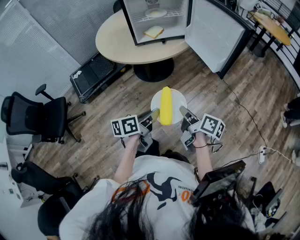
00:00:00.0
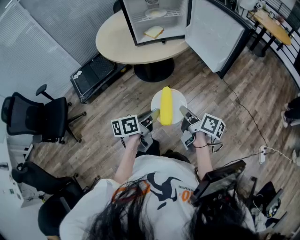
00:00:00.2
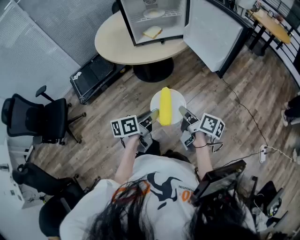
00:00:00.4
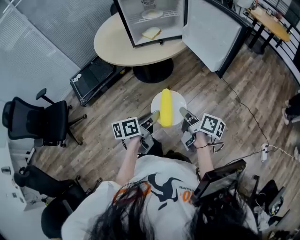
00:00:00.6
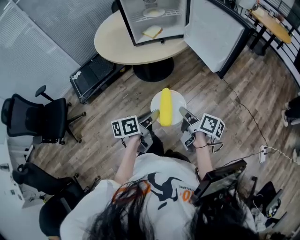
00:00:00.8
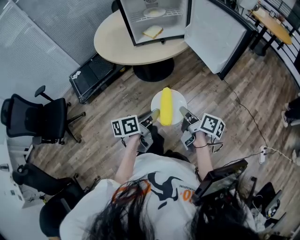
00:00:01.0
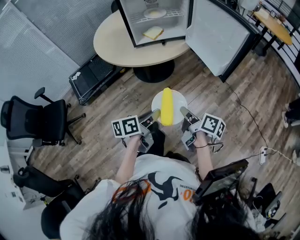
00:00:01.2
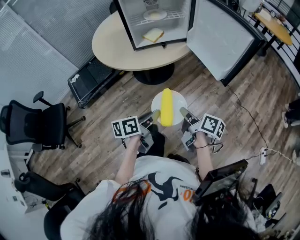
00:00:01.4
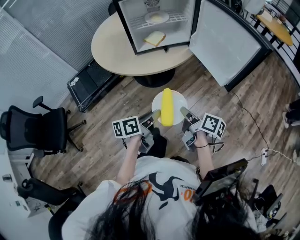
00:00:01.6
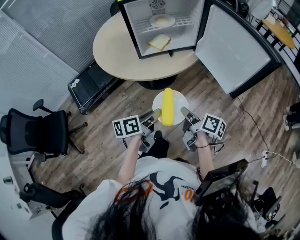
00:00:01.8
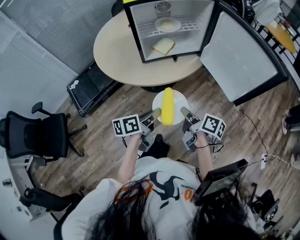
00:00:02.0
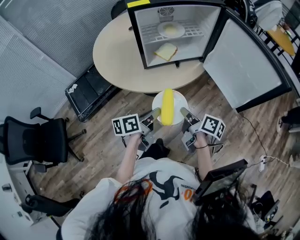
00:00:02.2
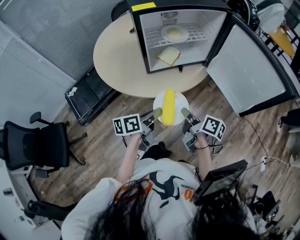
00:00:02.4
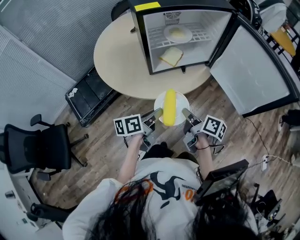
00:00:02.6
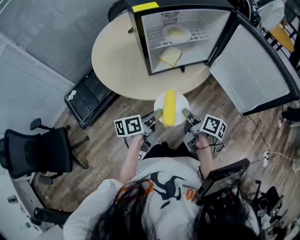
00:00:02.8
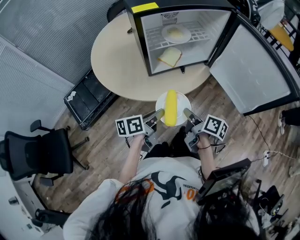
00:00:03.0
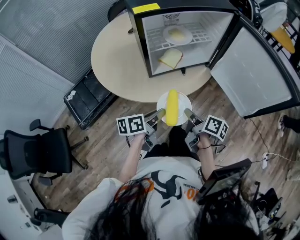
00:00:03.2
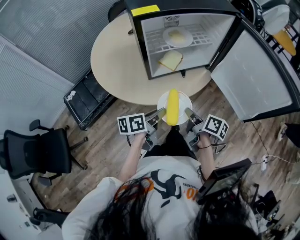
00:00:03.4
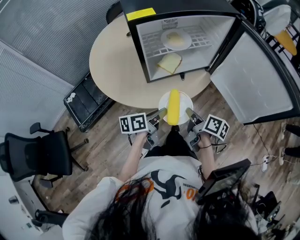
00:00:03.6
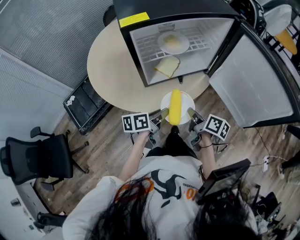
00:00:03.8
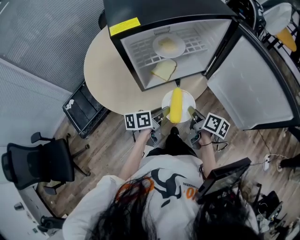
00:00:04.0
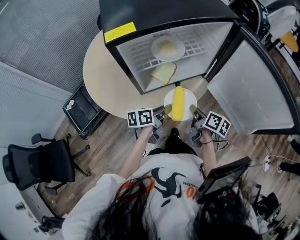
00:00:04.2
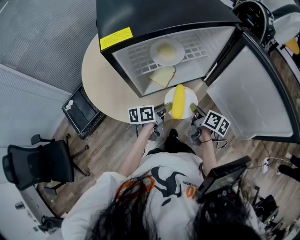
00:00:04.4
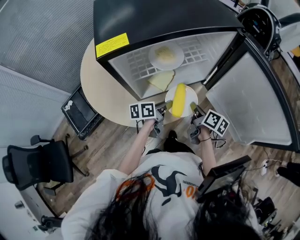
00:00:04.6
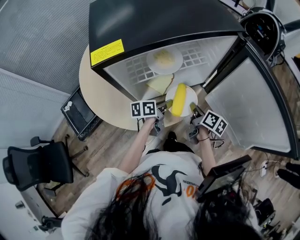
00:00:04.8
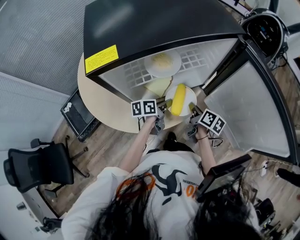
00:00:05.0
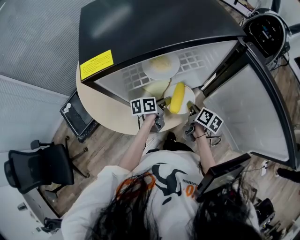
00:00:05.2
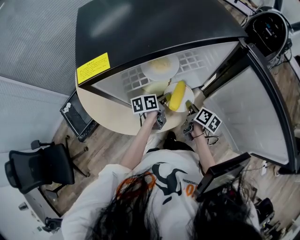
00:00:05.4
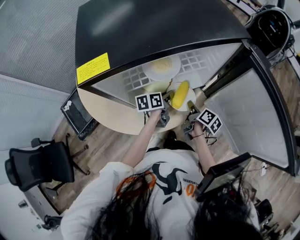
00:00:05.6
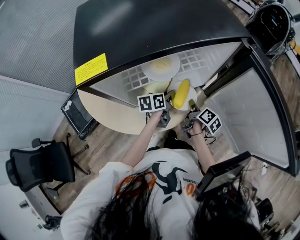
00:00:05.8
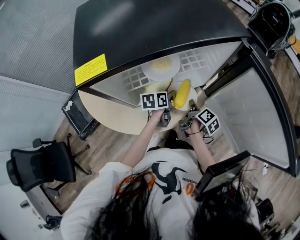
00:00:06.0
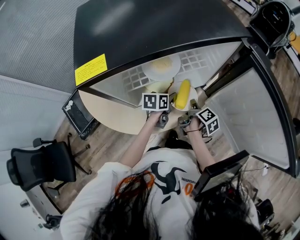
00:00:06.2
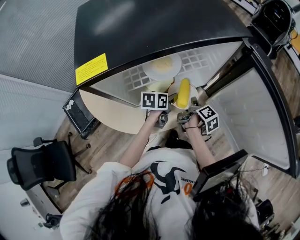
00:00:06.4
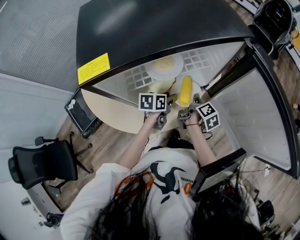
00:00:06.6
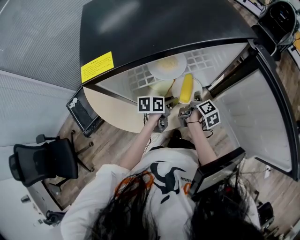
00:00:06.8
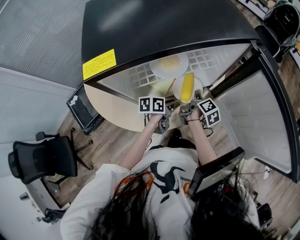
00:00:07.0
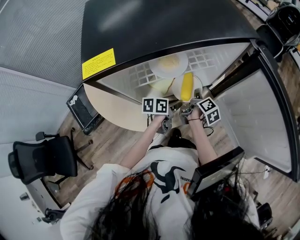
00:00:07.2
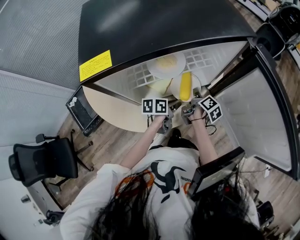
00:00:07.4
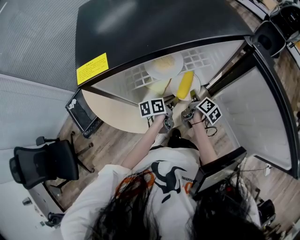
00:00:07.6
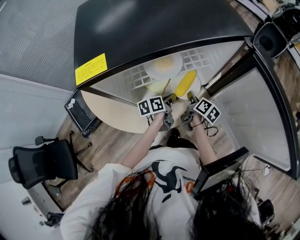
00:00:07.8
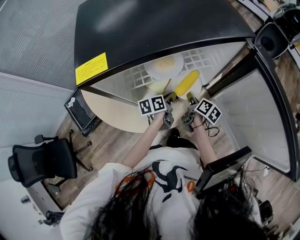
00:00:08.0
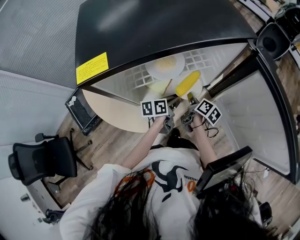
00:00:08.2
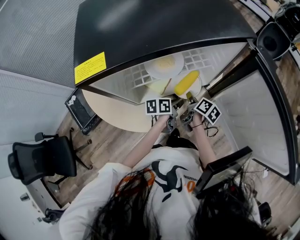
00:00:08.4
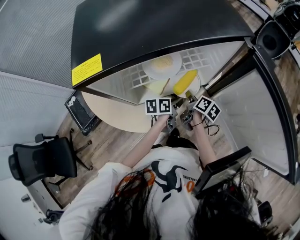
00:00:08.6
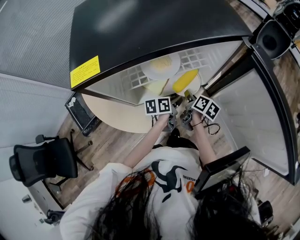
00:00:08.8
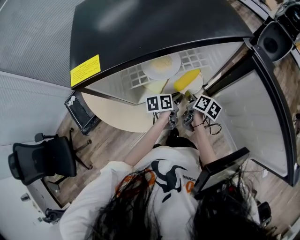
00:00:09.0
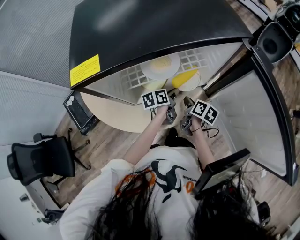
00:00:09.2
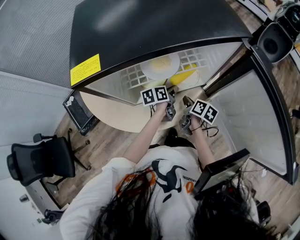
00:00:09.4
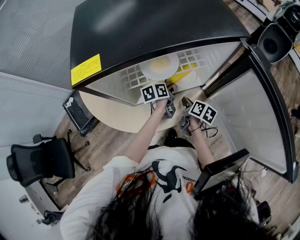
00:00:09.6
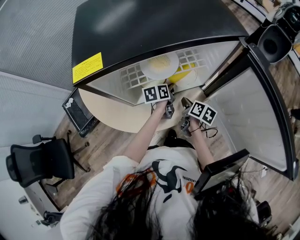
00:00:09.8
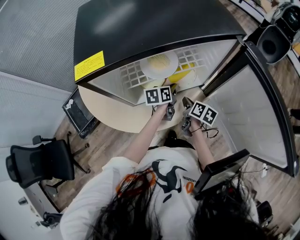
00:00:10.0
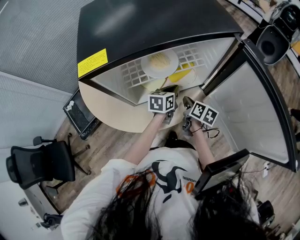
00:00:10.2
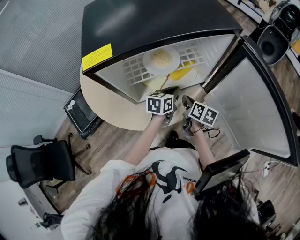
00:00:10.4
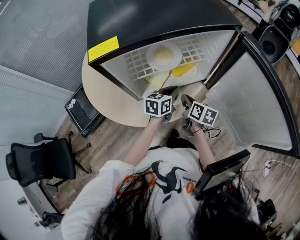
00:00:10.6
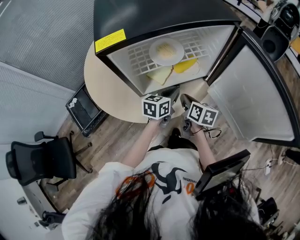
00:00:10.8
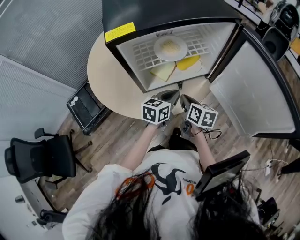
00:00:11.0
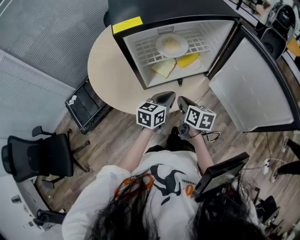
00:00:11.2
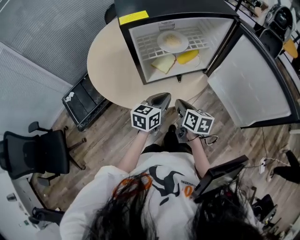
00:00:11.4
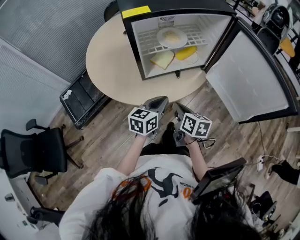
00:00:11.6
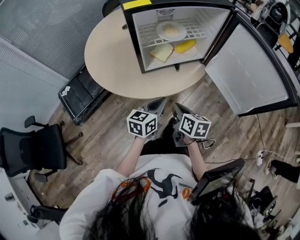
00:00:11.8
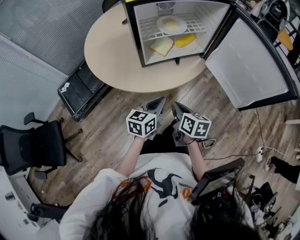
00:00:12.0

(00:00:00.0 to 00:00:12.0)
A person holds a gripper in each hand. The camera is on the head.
00:00:00.0 - 00:00:01.6: The two grippers go approximately 10 cm forward.
00:00:01.6 - 00:00:03.0: The two grippers go roughly 20 cm forward and to the left.
00:00:03.0 - 00:00:04.4: Both grippers move forward, roughly 20 cm.
00:00:04.4 - 00:00:06.0: The right gripper shifts some 10 cm forward and downward, and turns by roughly 30 degrees. Meanwhile the left gripper goes some 15 cm forward.
00:00:06.0 - 00:00:07.6: The left gripper opens, then closes once more.
00:00:07.6 - 00:00:09.0: The grippers stay close to where they were, moving slightly.
00:00:09.0 - 00:00:10.4: The left gripper heads upward, covering some 5 cm, and rotates some 30 degrees. Meanwhile the right gripper moves about 5 cm.
00:00:10.4 - 00:00:12.0: Both grippers travel together backward, approximately 30 cm.

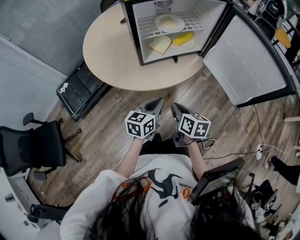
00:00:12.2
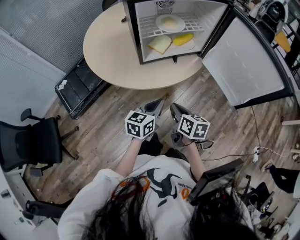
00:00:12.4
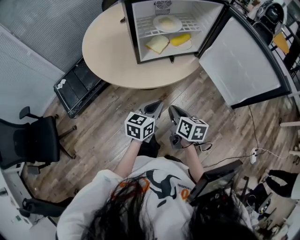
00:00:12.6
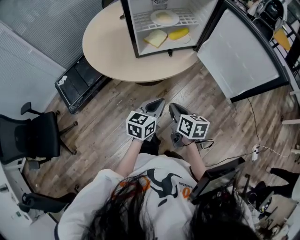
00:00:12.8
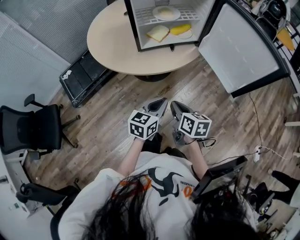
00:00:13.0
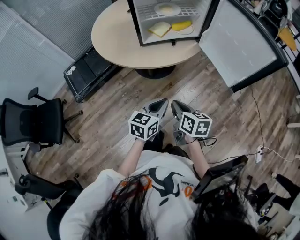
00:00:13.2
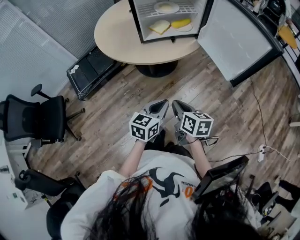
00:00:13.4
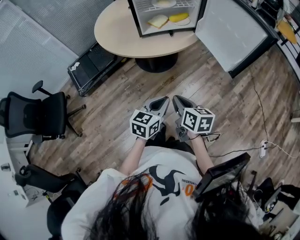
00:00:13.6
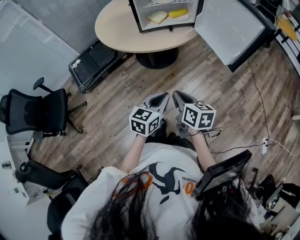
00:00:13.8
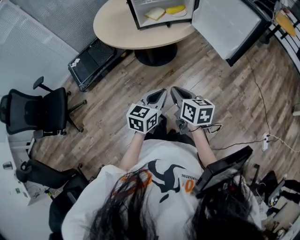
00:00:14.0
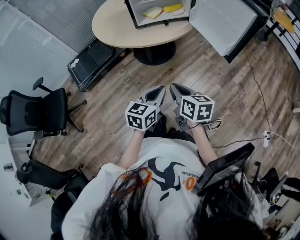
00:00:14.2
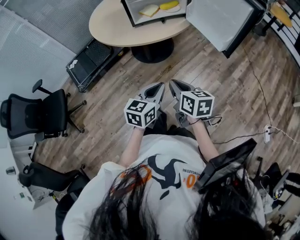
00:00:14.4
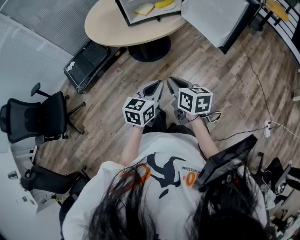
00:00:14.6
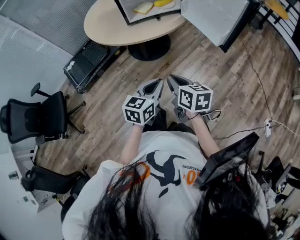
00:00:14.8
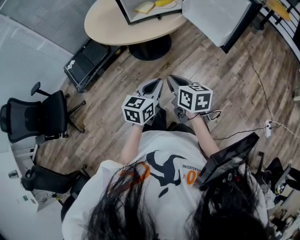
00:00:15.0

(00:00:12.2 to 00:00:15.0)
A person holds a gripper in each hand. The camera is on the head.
00:00:12.2 - 00:00:13.6: Both grippers move backward and to the right, roughly 20 cm.
00:00:13.6 - 00:00:15.0: The grippers make only small movements.

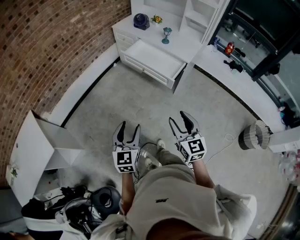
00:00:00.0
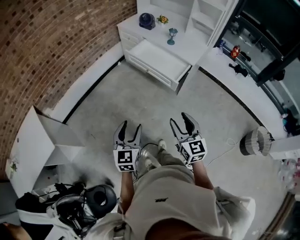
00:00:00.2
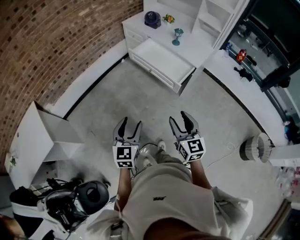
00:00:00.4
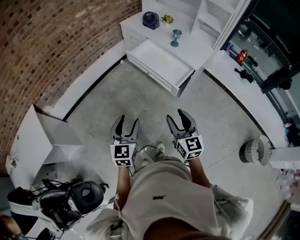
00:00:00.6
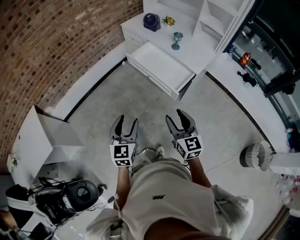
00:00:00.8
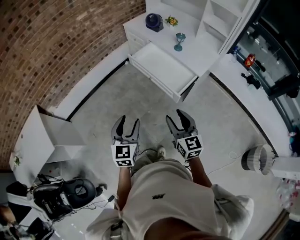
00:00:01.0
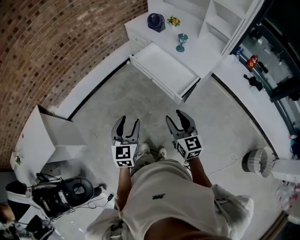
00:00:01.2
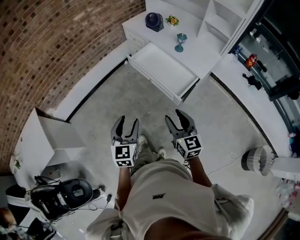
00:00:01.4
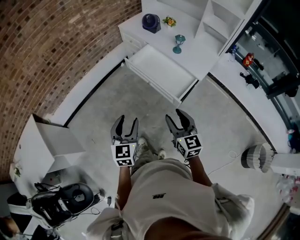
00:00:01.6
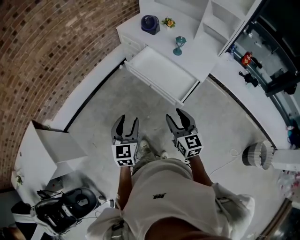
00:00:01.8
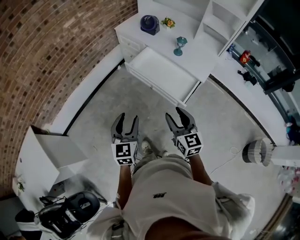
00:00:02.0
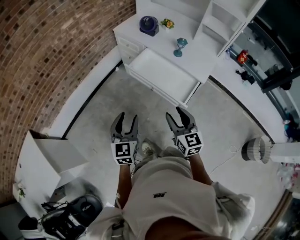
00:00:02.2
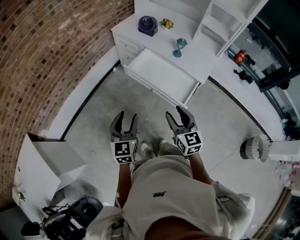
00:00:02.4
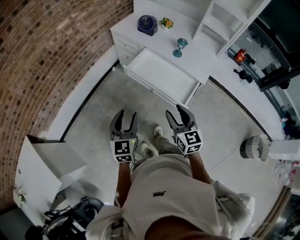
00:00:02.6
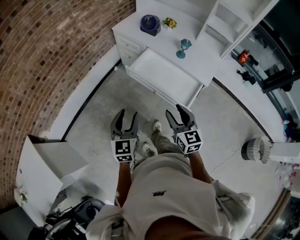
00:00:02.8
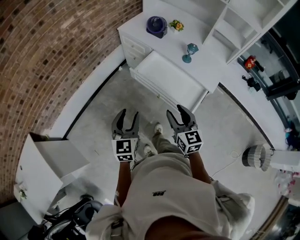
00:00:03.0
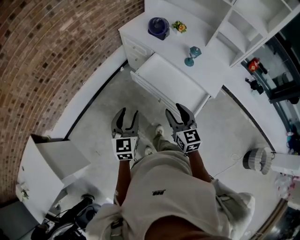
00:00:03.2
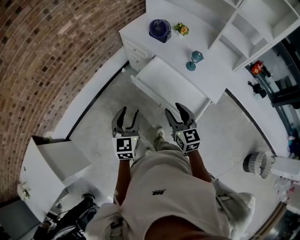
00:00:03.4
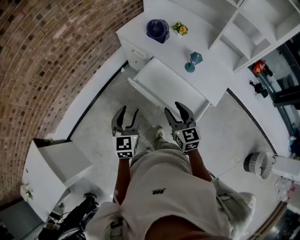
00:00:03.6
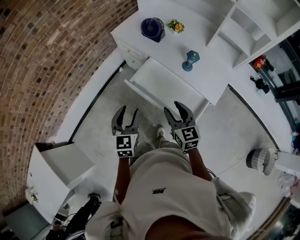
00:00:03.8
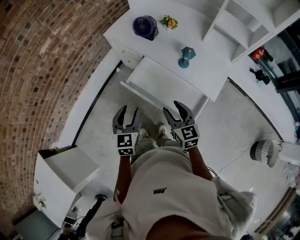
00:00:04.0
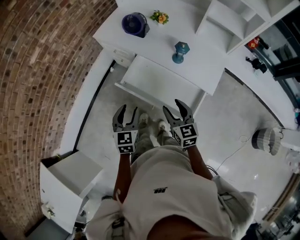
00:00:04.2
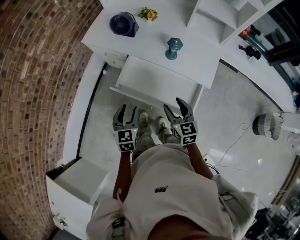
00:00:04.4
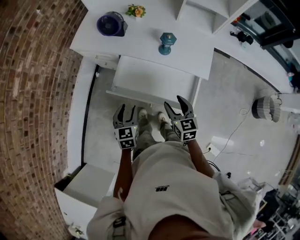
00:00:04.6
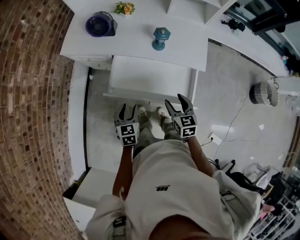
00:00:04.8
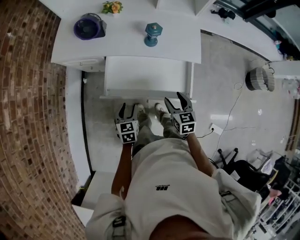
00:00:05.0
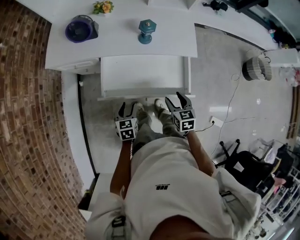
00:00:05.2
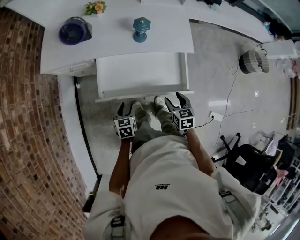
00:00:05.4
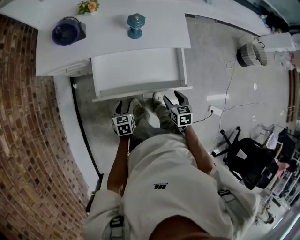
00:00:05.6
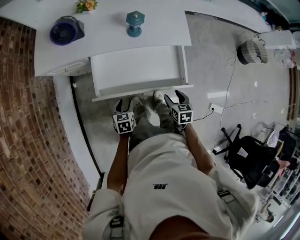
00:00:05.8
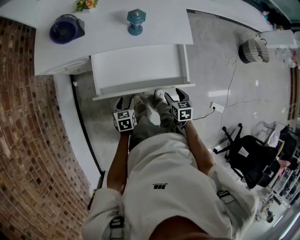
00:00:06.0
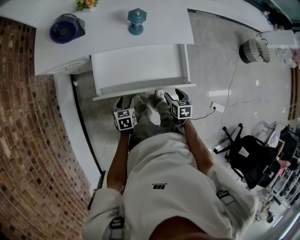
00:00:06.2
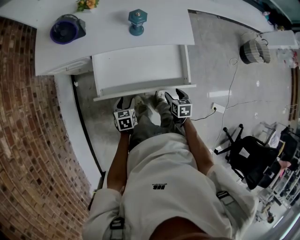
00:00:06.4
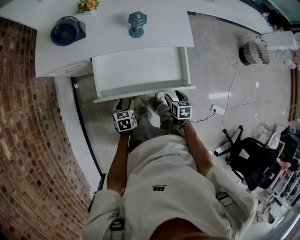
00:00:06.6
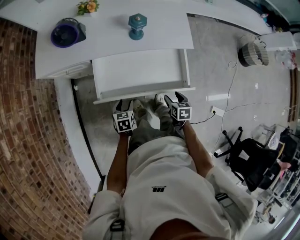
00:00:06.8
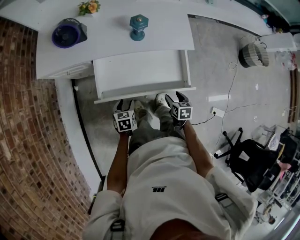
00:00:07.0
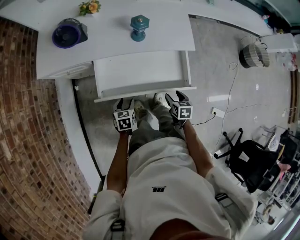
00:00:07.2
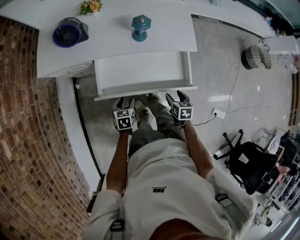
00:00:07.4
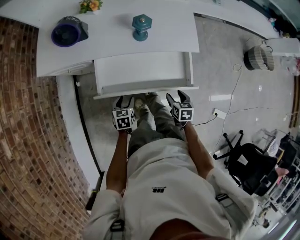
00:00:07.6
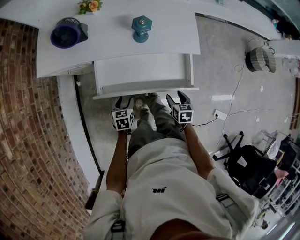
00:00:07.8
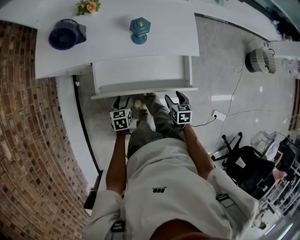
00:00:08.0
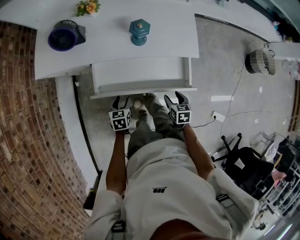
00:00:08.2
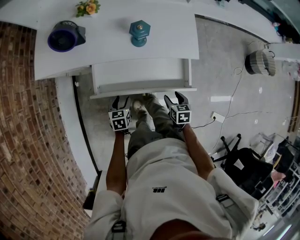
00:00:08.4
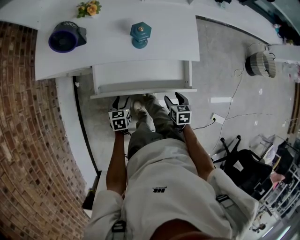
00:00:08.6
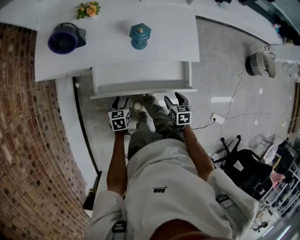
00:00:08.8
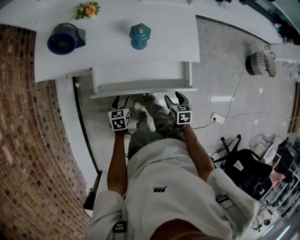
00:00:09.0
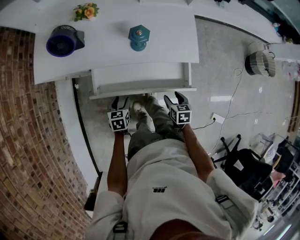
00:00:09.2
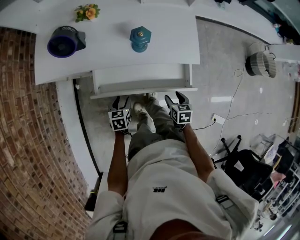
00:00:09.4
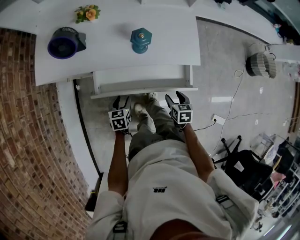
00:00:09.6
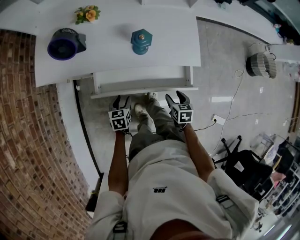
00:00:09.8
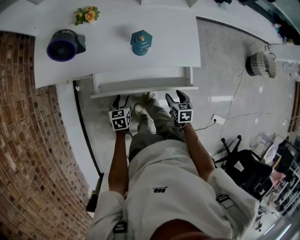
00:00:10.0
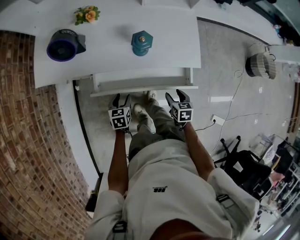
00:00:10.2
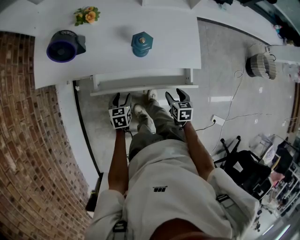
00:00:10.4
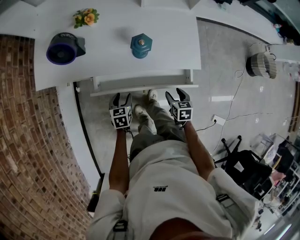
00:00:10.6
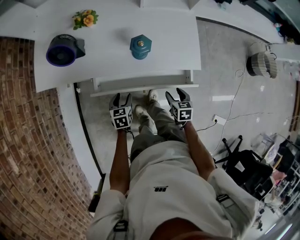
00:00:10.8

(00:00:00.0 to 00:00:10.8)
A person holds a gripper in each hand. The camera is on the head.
00:00:00.0 - 00:00:01.6: The two grippers go approximately 25 cm forward.
00:00:01.6 - 00:00:03.0: Both grippers move forward and to the left, roughly 20 cm.
00:00:03.0 - 00:00:04.6: The left gripper is displaced forward and downward by some 30 cm, and turns by approximately 30 degrees. The right gripper is displaced forward, downward and to the right by roughly 25 cm, and turns by roughly 30 degrees.
00:00:04.6 - 00:00:06.2: Both grippers move downward, approximately 20 cm. The right gripper swivels some 40 degrees; the left gripper changes its angle by approximately 30 degrees.
00:00:06.2 - 00:00:07.8: Both grippers travel together forward, some 5 cm.
00:00:07.8 - 00:00:09.2: The left gripper is displaced forward by some 5 cm.
00:00:09.2 - 00:00:10.8: The grippers both shift forward by approximately 5 cm.
